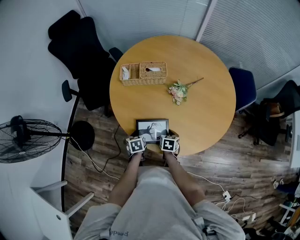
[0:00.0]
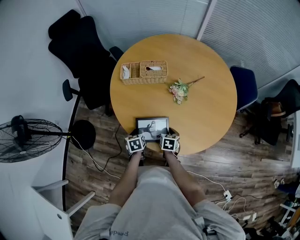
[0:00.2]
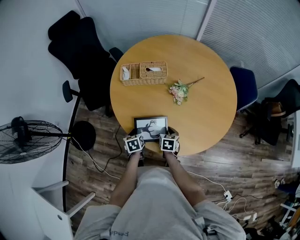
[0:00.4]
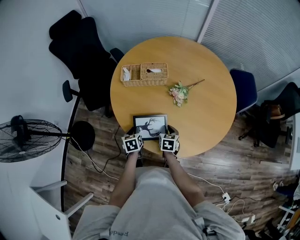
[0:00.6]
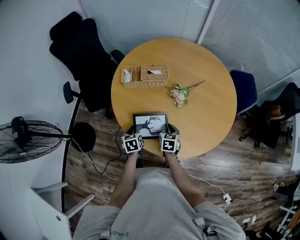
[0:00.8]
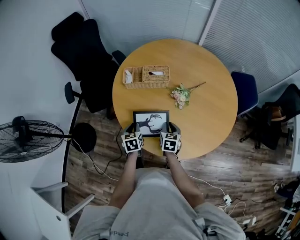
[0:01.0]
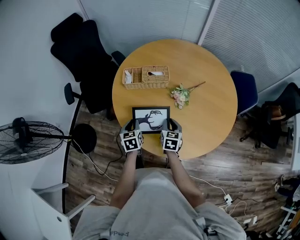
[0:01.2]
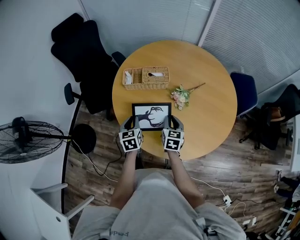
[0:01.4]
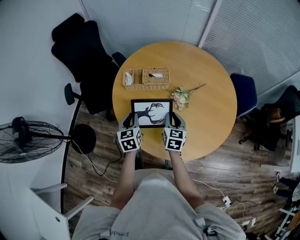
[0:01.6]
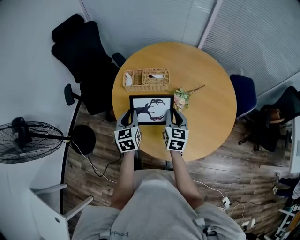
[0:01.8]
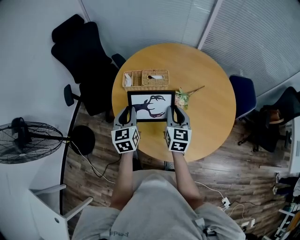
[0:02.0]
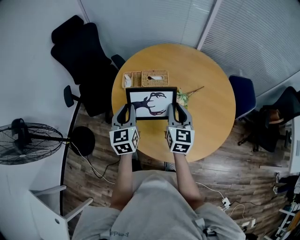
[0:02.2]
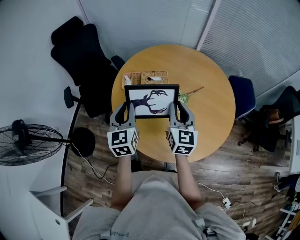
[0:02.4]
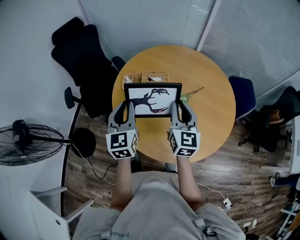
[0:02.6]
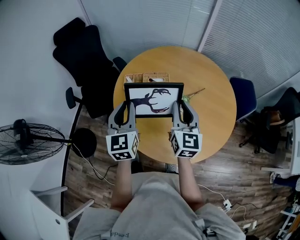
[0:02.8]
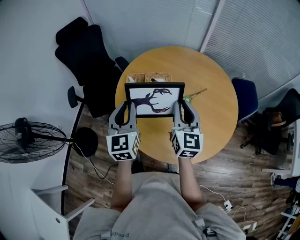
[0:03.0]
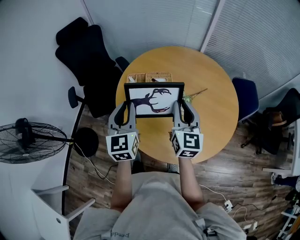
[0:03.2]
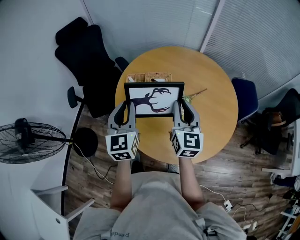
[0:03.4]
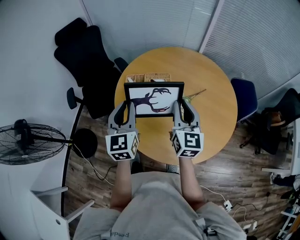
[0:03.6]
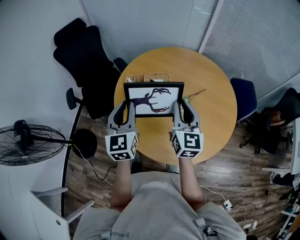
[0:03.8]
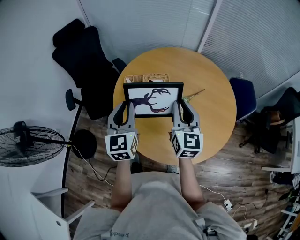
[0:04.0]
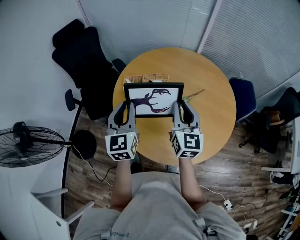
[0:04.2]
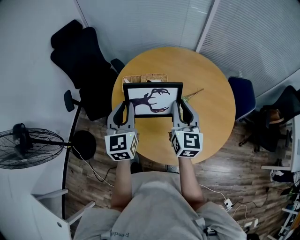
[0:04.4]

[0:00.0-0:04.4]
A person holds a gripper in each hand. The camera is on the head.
0:00.0 to 0:01.4: Both grippers travel together upward and forward, some 15 cm. The right gripper rotates some 20 degrees.
0:01.4 to 0:03.0: Both grippers travel together upward, roughly 25 cm. The right gripper changes its angle by about 30 degrees. The left gripper swivels approximately 30 degrees.
0:03.0 to 0:04.4: There are only small adjustments of the grippers.

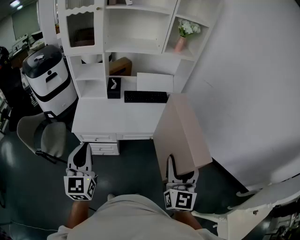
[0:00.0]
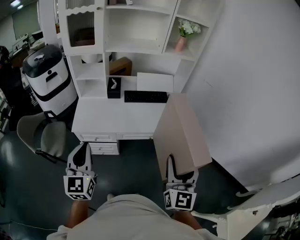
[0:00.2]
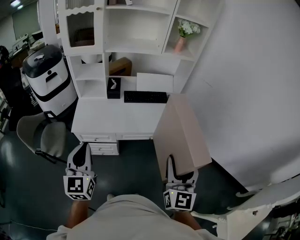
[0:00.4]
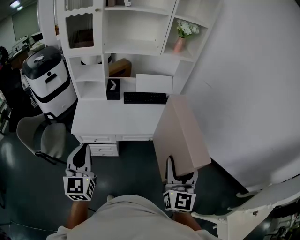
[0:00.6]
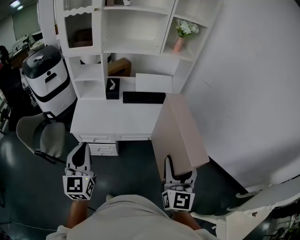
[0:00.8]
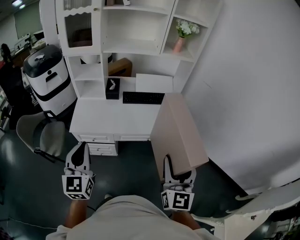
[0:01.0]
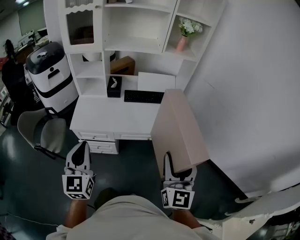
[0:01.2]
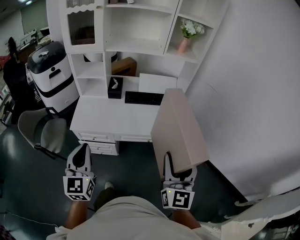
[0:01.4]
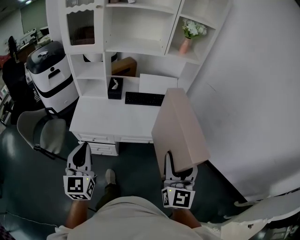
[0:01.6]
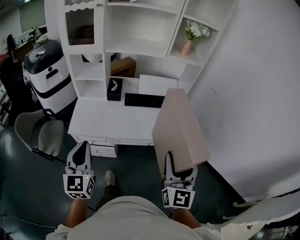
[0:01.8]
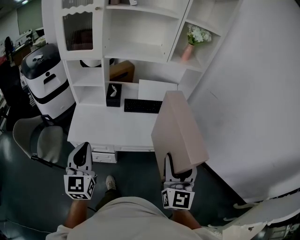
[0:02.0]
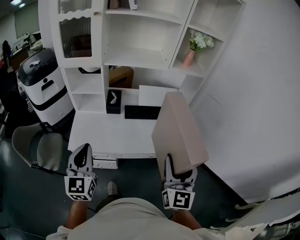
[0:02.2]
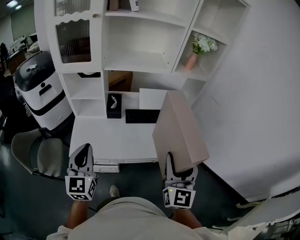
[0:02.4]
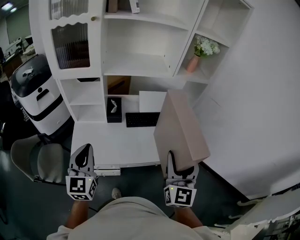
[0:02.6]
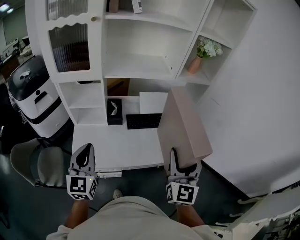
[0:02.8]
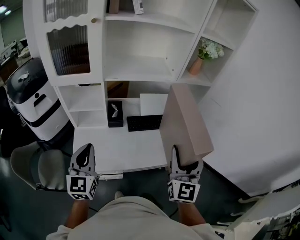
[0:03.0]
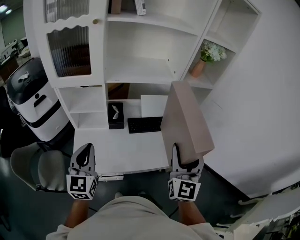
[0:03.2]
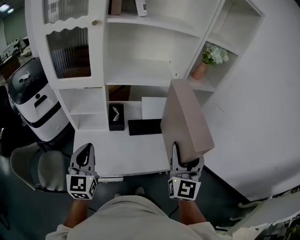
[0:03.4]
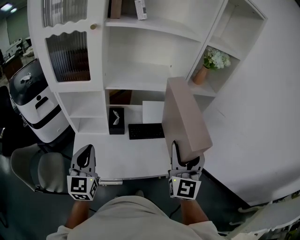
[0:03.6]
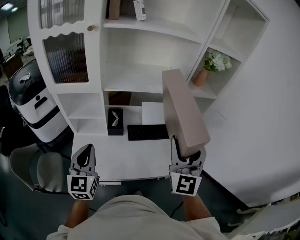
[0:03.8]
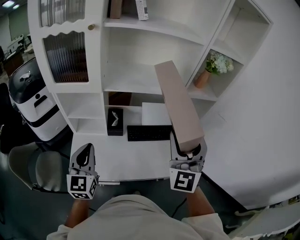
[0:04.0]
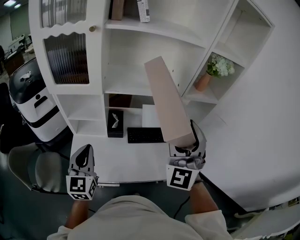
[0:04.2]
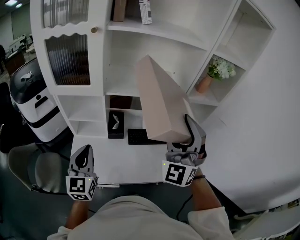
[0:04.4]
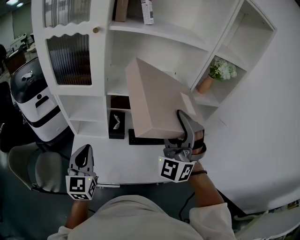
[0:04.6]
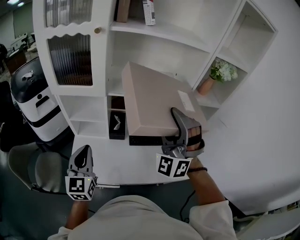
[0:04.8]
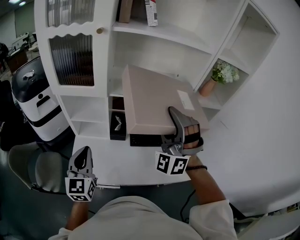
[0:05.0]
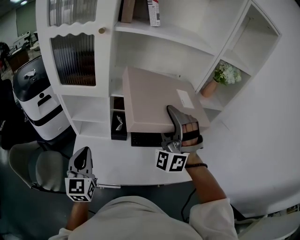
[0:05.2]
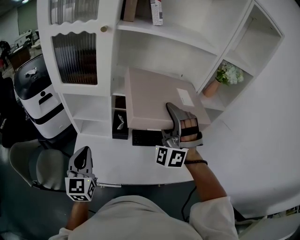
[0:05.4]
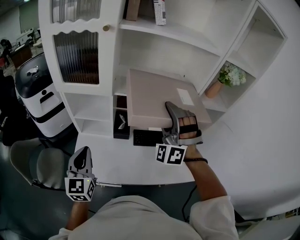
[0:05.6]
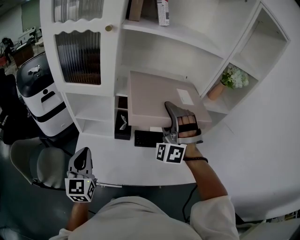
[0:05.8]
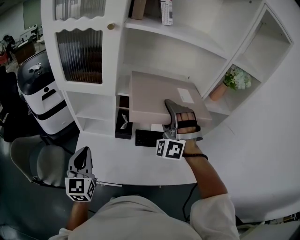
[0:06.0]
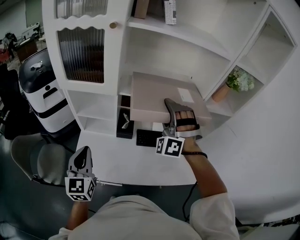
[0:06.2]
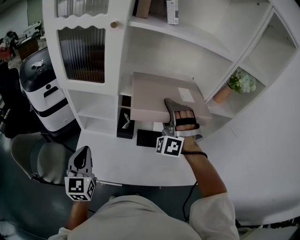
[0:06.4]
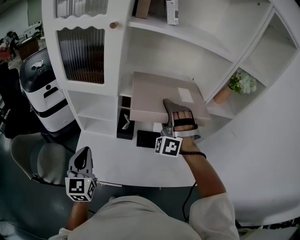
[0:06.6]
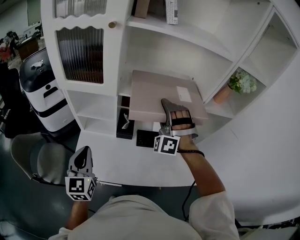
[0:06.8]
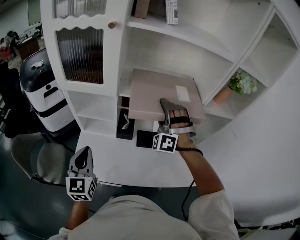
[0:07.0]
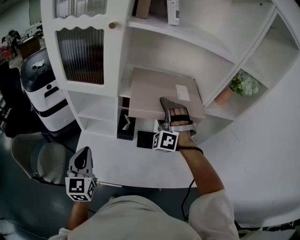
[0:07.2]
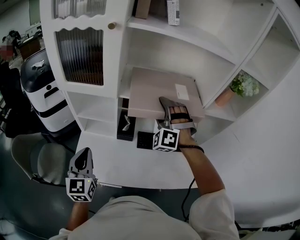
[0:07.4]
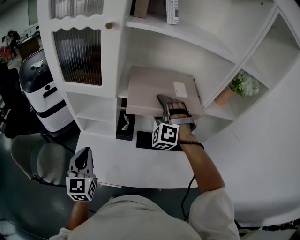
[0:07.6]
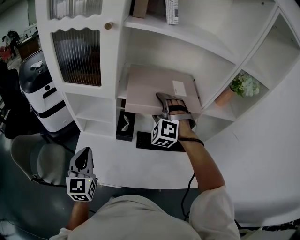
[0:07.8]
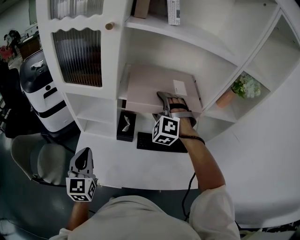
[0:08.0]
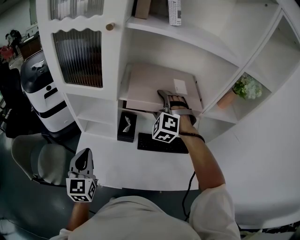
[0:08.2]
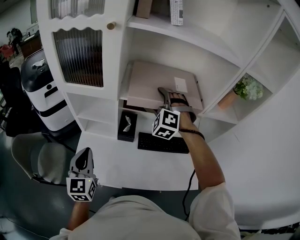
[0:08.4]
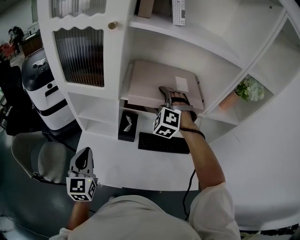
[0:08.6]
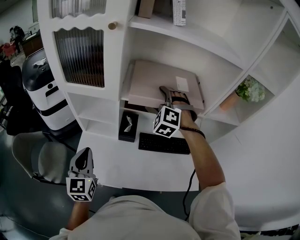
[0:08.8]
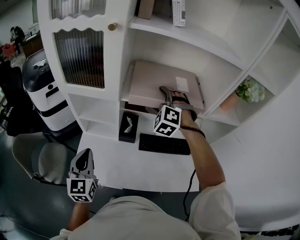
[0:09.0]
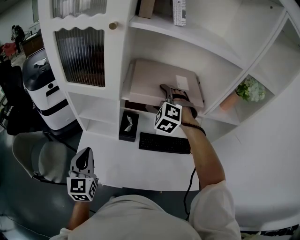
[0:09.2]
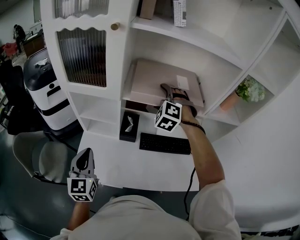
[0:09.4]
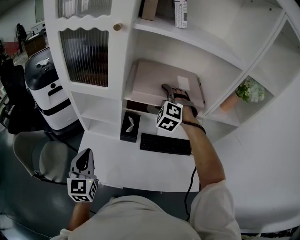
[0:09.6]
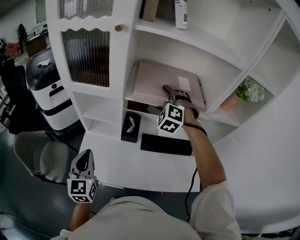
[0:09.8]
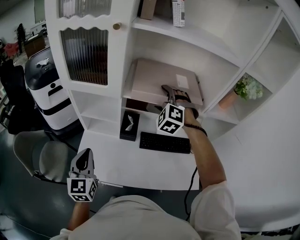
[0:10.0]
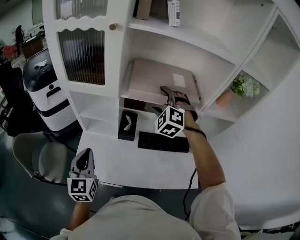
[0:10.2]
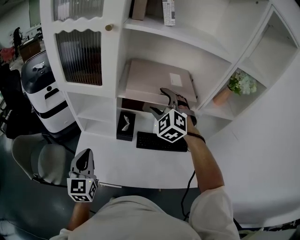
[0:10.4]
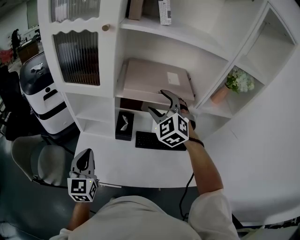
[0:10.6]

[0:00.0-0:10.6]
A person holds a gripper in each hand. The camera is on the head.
0:00.0 to 0:01.6: The right gripper heads forward, covering some 5 cm.
0:01.6 to 0:03.0: Both grippers travel together forward and to the left, some 30 cm.
0:03.0 to 0:04.6: The right gripper heads forward, to the left and upward, covering some 20 cm, and rotates around the line of its fingers by approximately 50 degrees, counterclockwise from behind; the left gripper is displaced forward by some 5 cm.
0:04.6 to 0:06.0: The right gripper heads forward and downward, covering roughly 15 cm, and turns by about 30 degrees.
0:06.0 to 0:07.6: The right gripper heads forward and downward, covering roughly 10 cm.
0:07.6 to 0:09.0: The right gripper moves forward, some 5 cm.
0:09.0 to 0:10.6: The right gripper moves backward and upward, approximately 10 cm, and swivels approximately 20 degrees.

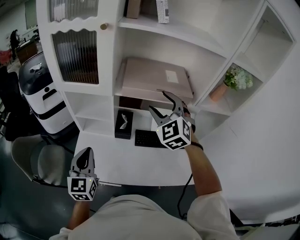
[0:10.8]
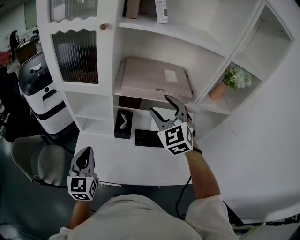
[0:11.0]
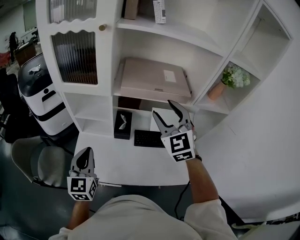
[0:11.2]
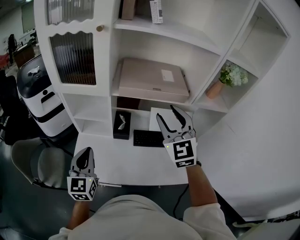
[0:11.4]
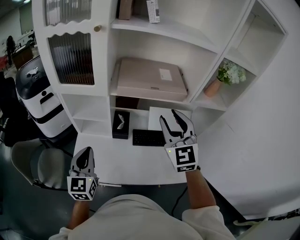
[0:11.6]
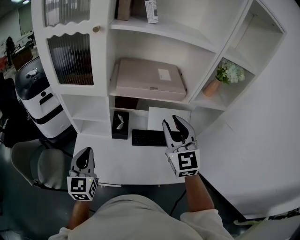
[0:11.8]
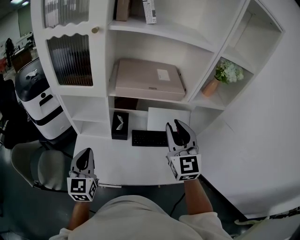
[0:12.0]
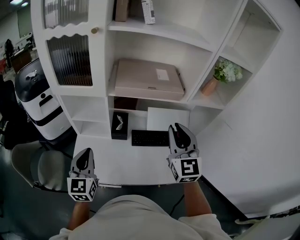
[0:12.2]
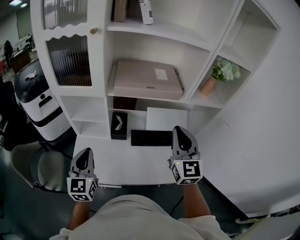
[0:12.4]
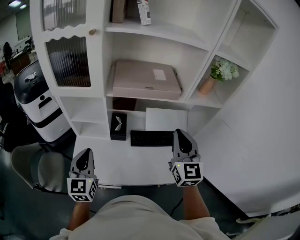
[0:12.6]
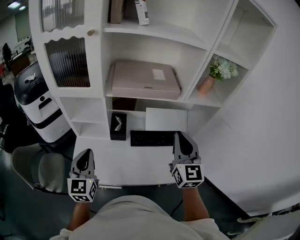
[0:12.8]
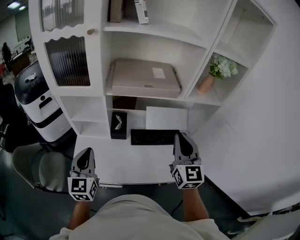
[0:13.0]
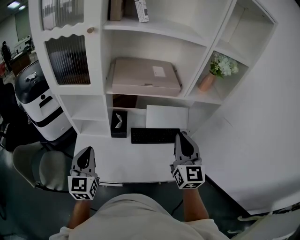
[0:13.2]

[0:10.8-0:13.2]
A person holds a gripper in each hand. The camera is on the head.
0:10.8 to 0:12.0: The right gripper heads backward and to the right, covering roughly 15 cm, swivels some 30 degrees, and closes up.
0:12.0 to 0:13.2: The right gripper travels to the right and backward by roughly 5 cm.

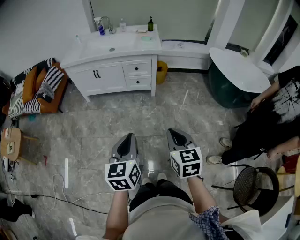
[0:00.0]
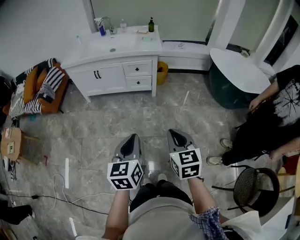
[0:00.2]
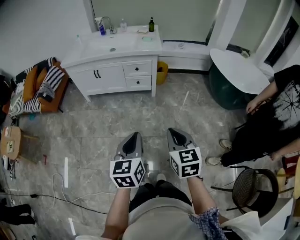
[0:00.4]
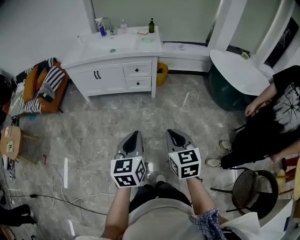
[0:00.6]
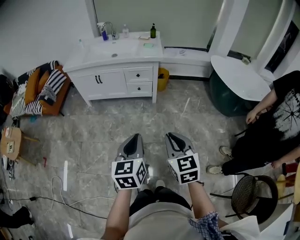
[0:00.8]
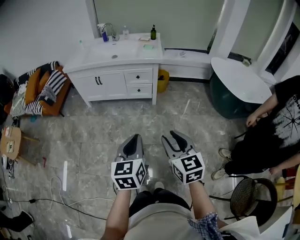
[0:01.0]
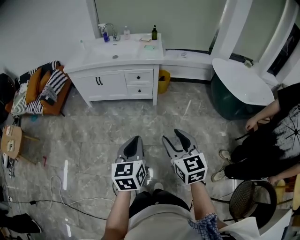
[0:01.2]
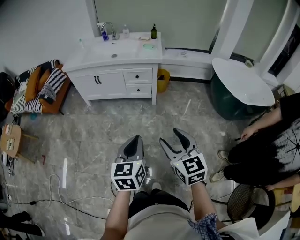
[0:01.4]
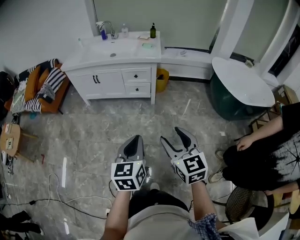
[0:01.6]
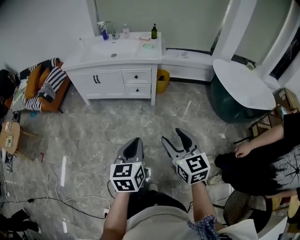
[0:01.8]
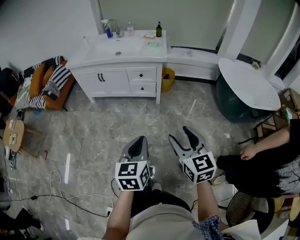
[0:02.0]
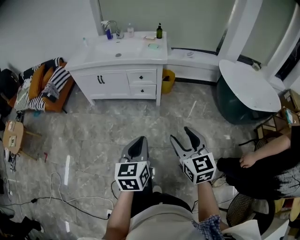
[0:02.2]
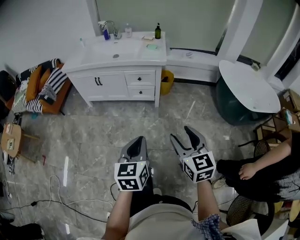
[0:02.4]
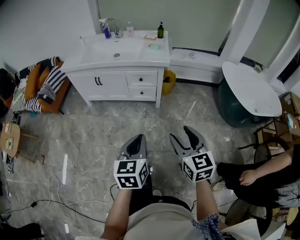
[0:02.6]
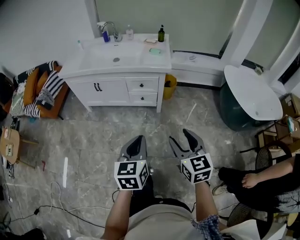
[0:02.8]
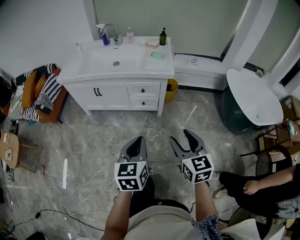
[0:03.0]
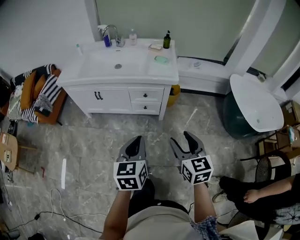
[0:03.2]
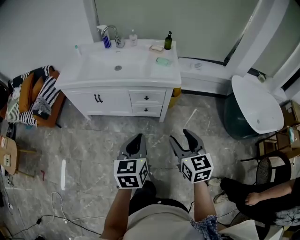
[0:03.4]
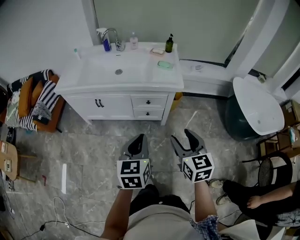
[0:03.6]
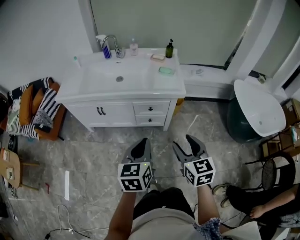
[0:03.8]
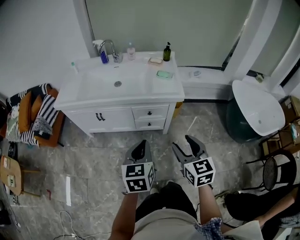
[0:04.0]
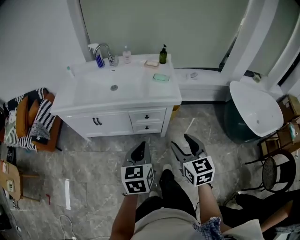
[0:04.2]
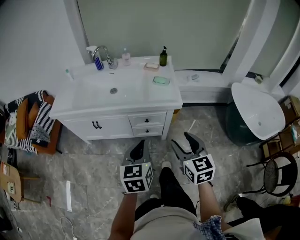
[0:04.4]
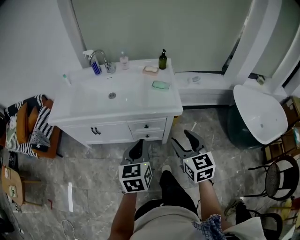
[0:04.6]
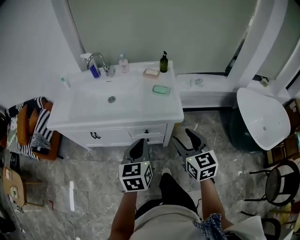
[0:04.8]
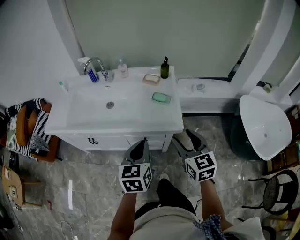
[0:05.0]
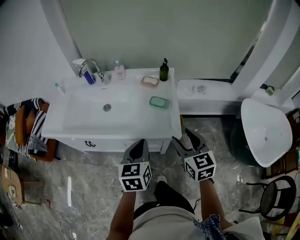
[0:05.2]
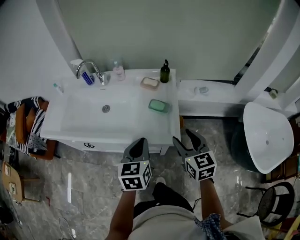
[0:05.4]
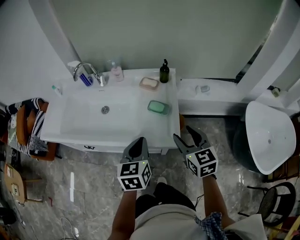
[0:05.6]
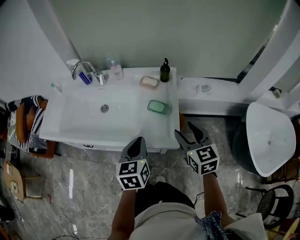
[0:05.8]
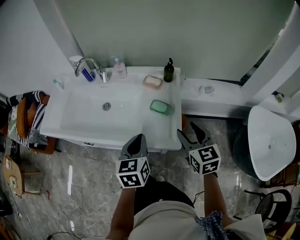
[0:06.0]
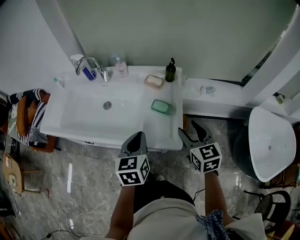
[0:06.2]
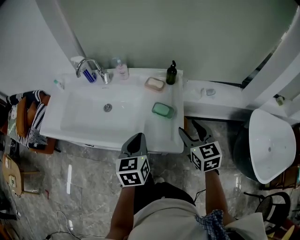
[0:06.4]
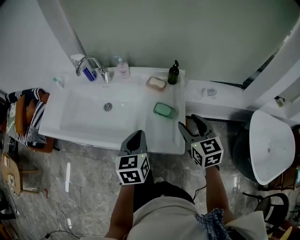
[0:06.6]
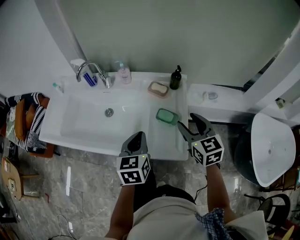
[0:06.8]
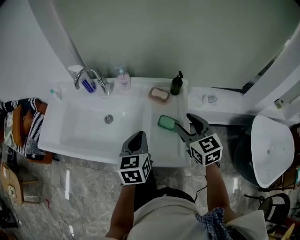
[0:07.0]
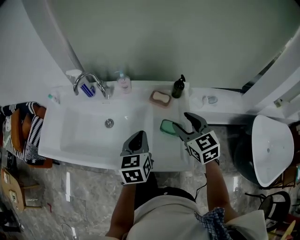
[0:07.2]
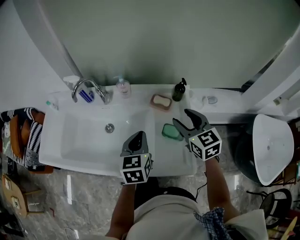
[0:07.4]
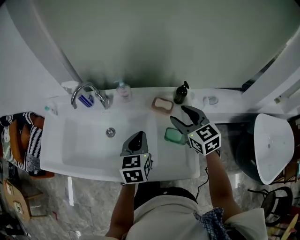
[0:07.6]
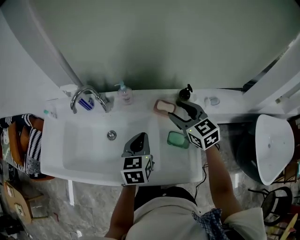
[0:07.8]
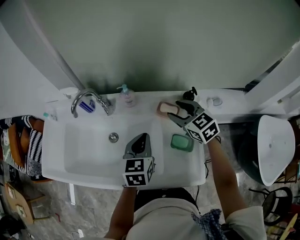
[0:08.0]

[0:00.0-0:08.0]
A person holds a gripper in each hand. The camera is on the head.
0:00.0 to 0:01.6: The left gripper goes some 10 cm to the right. Meanwhile the right gripper shifts by roughly 5 cm, and opens.
0:01.6 to 0:03.2: The grippers both shift forward by some 30 cm.
0:03.2 to 0:04.8: Both grippers travel together forward, approximately 25 cm.
0:04.8 to 0:06.4: The grippers both shift forward by about 20 cm.
0:06.4 to 0:08.0: The two grippers go about 25 cm forward.
